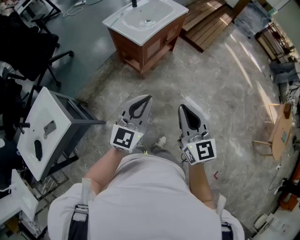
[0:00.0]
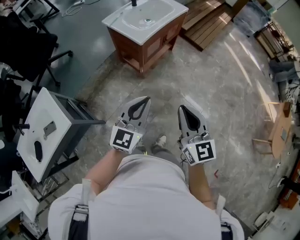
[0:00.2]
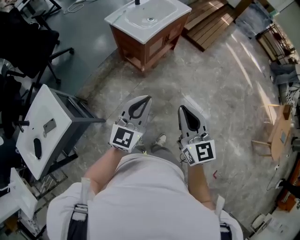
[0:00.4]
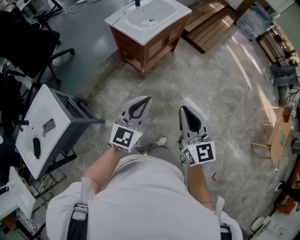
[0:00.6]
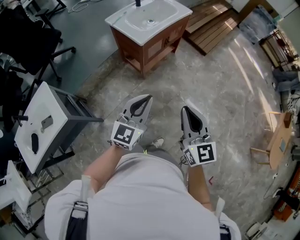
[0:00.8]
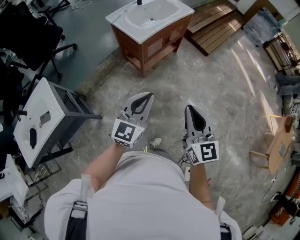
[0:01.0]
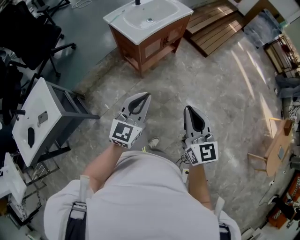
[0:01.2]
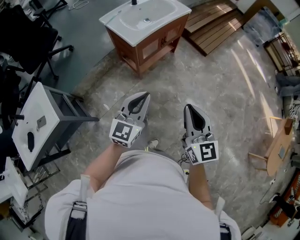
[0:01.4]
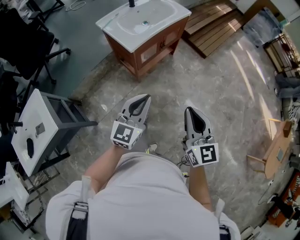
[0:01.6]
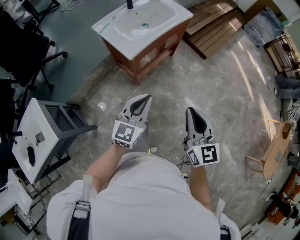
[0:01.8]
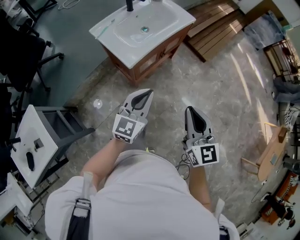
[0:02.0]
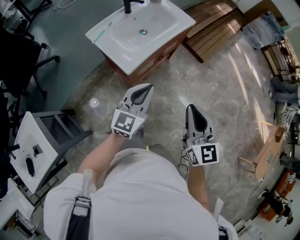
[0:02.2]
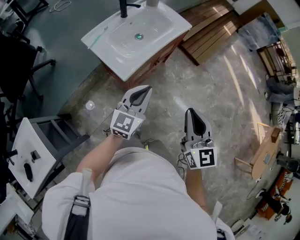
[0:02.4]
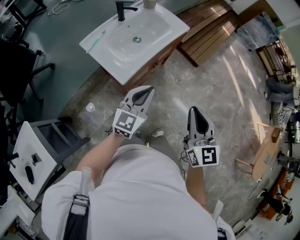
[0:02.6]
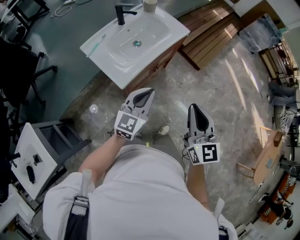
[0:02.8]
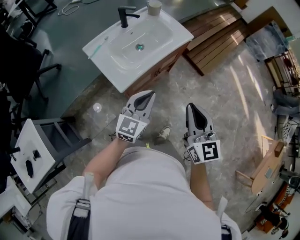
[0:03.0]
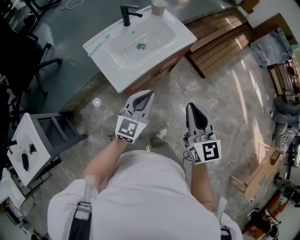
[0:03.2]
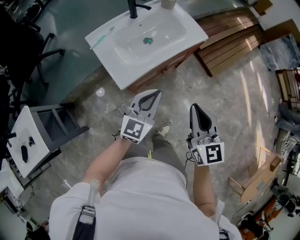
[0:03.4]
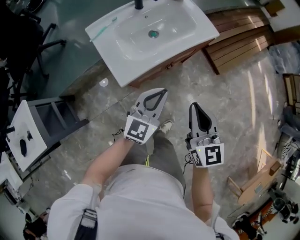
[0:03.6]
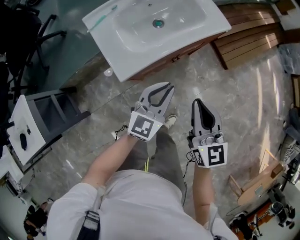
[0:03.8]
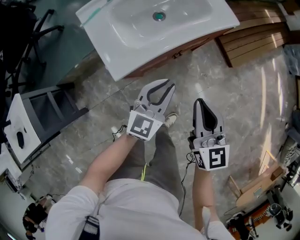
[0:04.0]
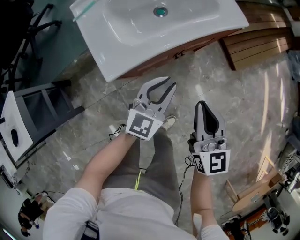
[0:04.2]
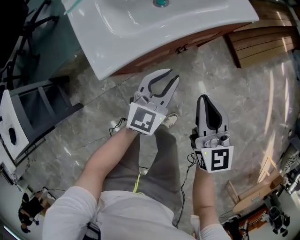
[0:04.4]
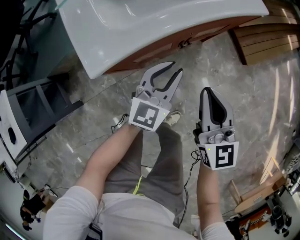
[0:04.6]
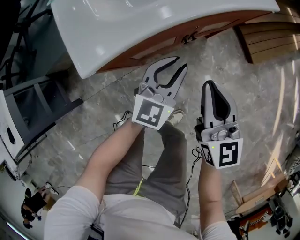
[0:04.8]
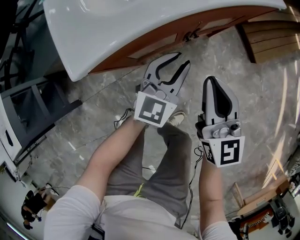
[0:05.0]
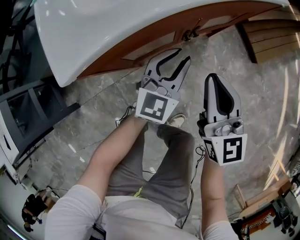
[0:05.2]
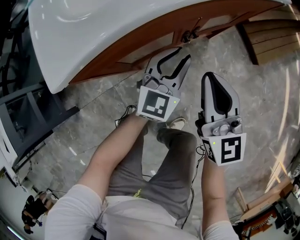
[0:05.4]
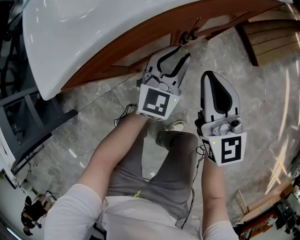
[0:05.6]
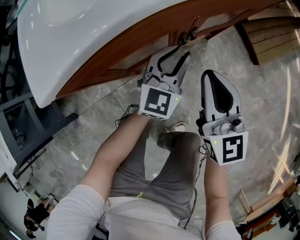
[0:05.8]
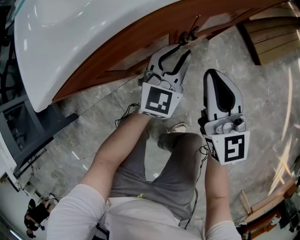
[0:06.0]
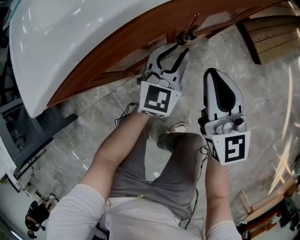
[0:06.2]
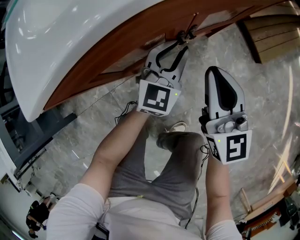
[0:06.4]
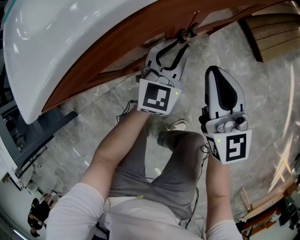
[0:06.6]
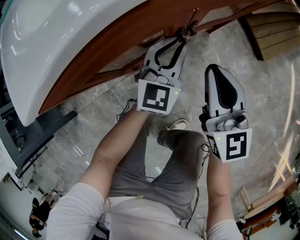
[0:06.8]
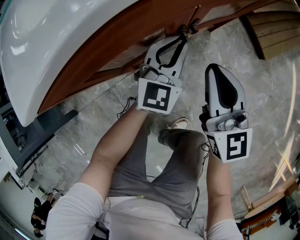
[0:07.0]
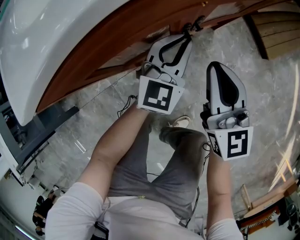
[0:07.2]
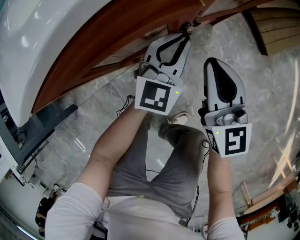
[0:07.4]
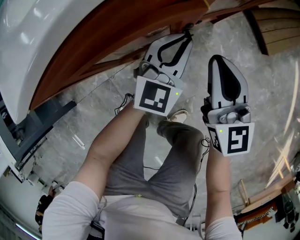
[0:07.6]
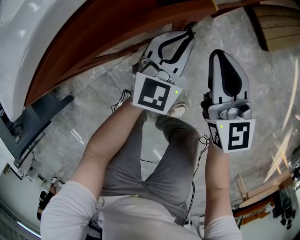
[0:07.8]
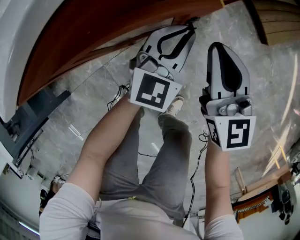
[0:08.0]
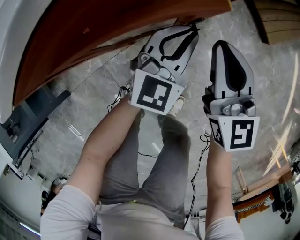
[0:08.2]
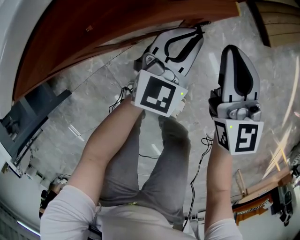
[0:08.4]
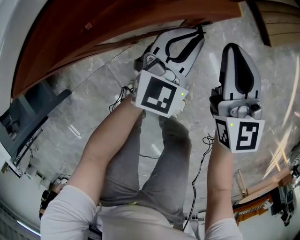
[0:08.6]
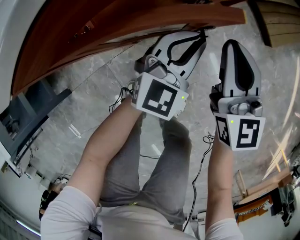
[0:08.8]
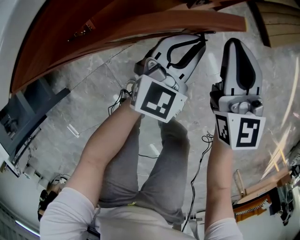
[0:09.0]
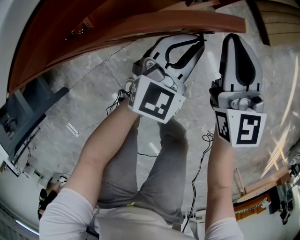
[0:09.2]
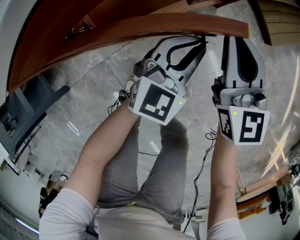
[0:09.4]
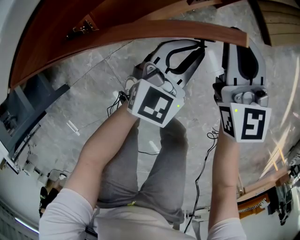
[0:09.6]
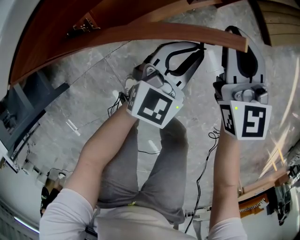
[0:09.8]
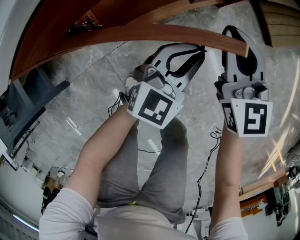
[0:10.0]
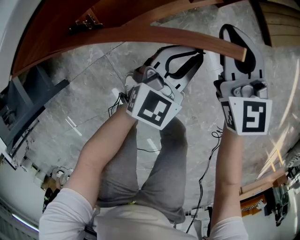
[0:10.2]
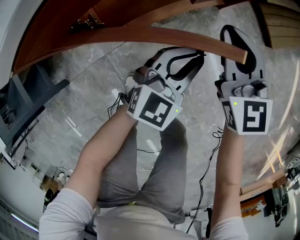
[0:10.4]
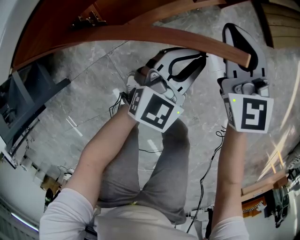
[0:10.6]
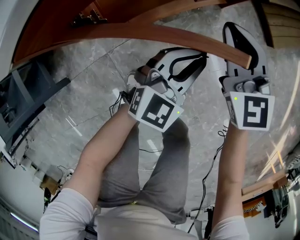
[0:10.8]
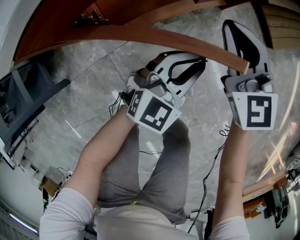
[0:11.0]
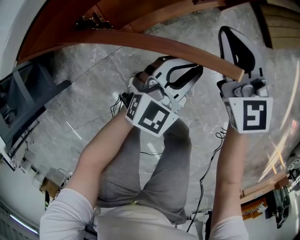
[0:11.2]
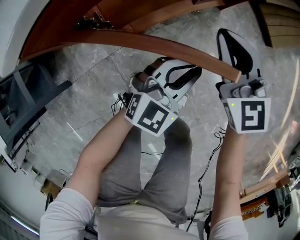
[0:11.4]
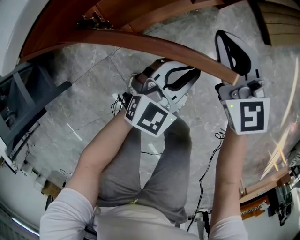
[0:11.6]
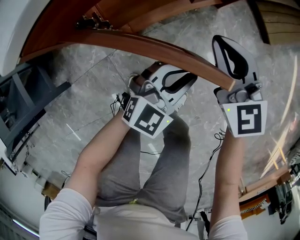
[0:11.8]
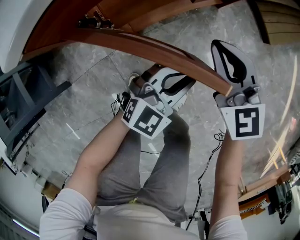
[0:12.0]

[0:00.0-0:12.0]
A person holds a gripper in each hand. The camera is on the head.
0:00.0 to 0:01.6: The left gripper heads forward, to the right and downward, covering approximately 20 cm, while the right gripper heads forward and to the right, covering roughly 20 cm.
0:01.6 to 0:03.0: Both grippers move forward, roughly 35 cm.
0:03.0 to 0:04.4: Both grippers move downward and forward, some 35 cm.
0:04.4 to 0:06.0: Both grippers move downward, approximately 25 cm.
0:06.0 to 0:07.6: The right gripper moves downward, about 5 cm.
0:07.6 to 0:09.0: The left gripper goes some 5 cm backward.
0:09.0 to 0:10.4: The left gripper moves backward, some 5 cm.
0:10.4 to 0:12.0: The two grippers go some 5 cm backward.

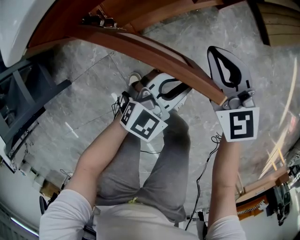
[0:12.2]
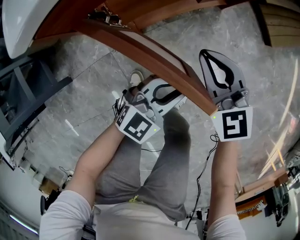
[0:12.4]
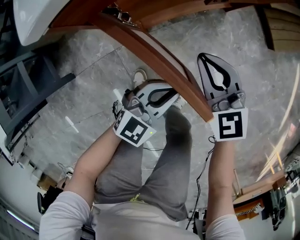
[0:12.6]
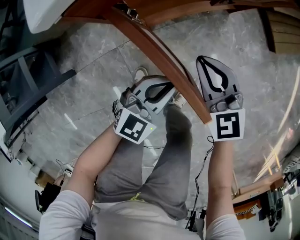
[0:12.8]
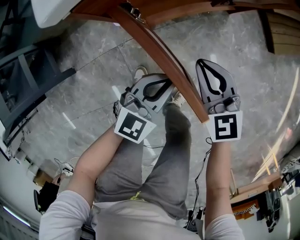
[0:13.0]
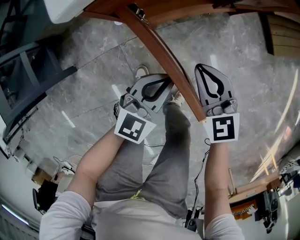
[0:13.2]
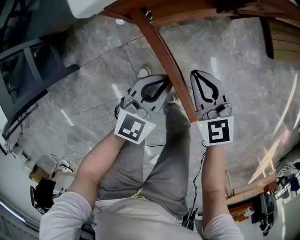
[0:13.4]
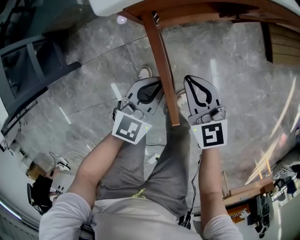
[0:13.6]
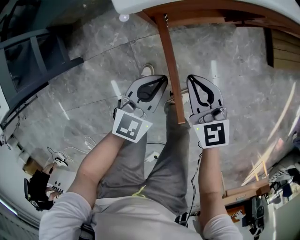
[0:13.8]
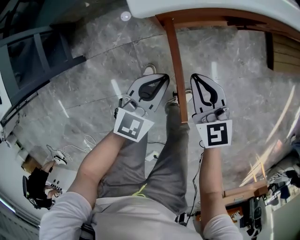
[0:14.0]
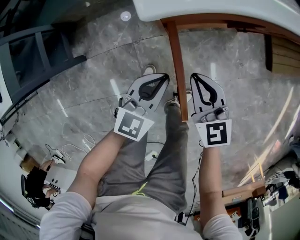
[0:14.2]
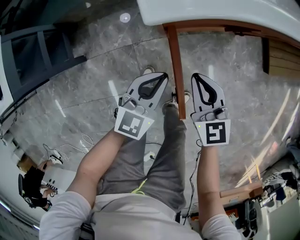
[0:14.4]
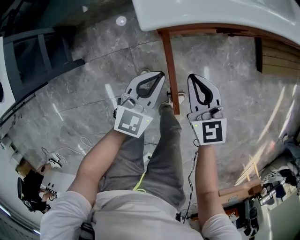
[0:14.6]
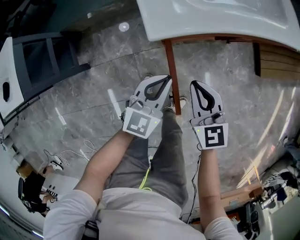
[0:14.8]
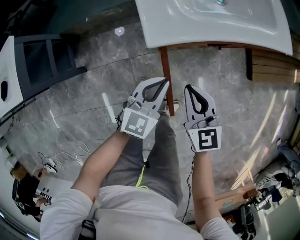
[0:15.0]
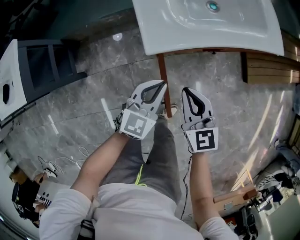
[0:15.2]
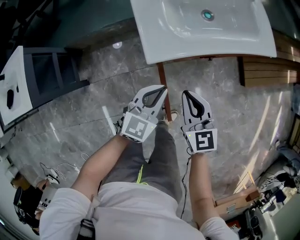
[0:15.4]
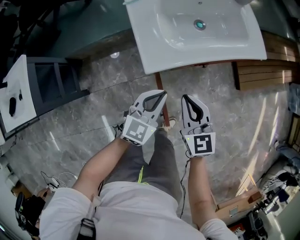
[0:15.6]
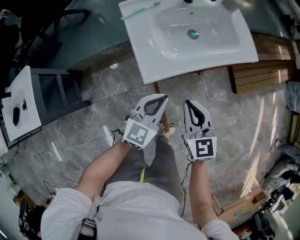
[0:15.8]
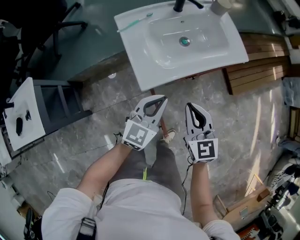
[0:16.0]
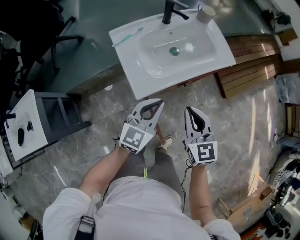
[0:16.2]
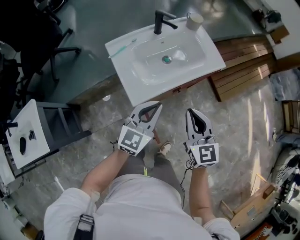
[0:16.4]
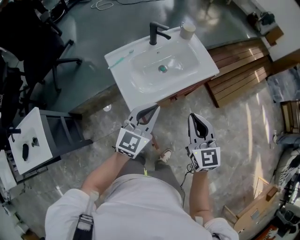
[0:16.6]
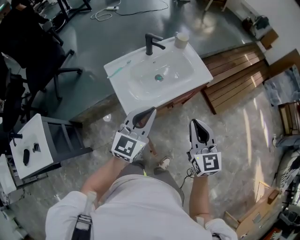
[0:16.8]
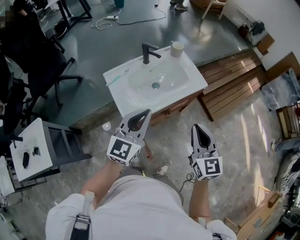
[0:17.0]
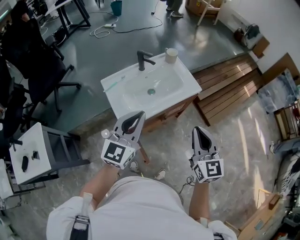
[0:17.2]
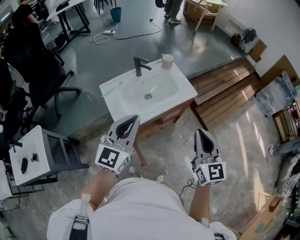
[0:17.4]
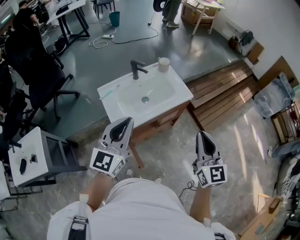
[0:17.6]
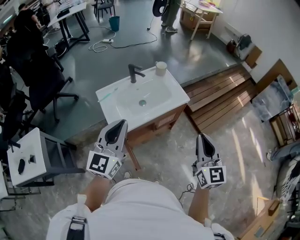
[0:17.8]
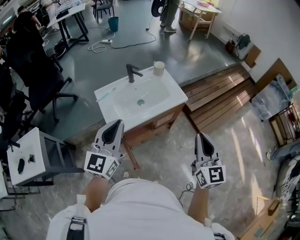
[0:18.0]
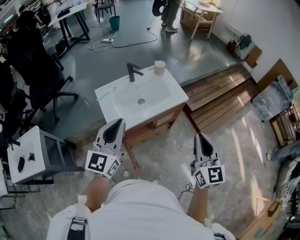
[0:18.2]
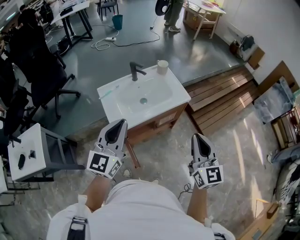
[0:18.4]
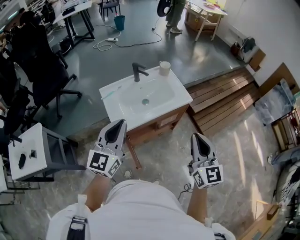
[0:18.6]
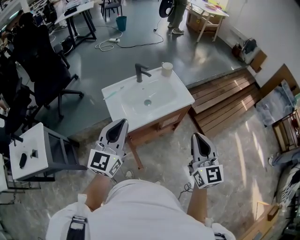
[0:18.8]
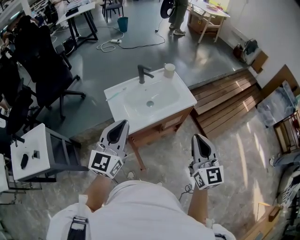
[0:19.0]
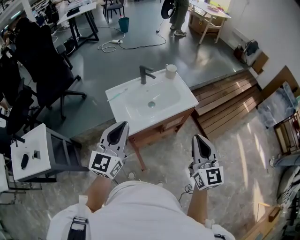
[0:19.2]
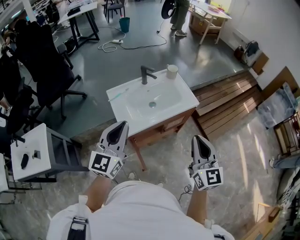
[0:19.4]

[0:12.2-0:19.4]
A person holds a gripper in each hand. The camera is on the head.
0:12.2 to 0:13.6: The right gripper heads to the left and backward, covering approximately 15 cm. The left gripper goes some 15 cm to the left and upward, and turns by some 30 degrees.
0:13.6 to 0:15.0: The grippers both shift upward by some 20 cm.
0:15.0 to 0:16.6: Both grippers move upward, some 35 cm. The right gripper turns by approximately 30 degrees.
0:16.6 to 0:18.0: The right gripper moves to the right and upward, about 25 cm, while the left gripper travels upward and backward by roughly 20 cm.
0:18.0 to 0:19.4: The two grippers go roughly 5 cm to the left.

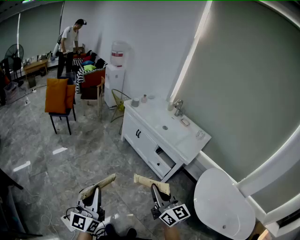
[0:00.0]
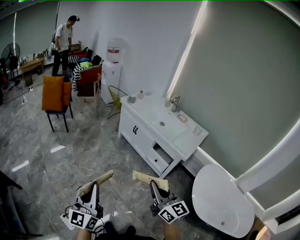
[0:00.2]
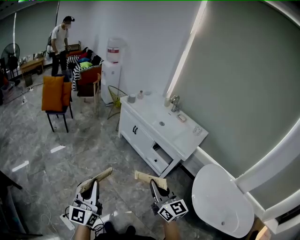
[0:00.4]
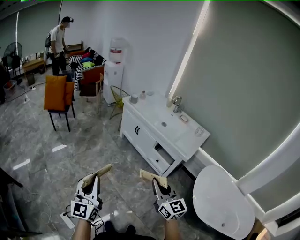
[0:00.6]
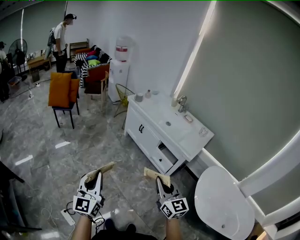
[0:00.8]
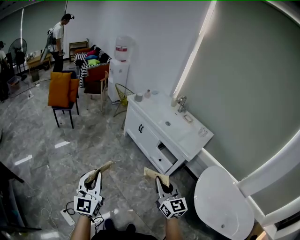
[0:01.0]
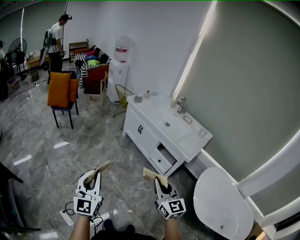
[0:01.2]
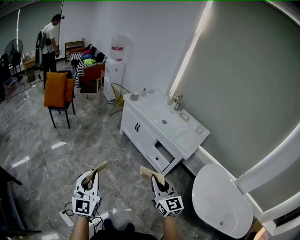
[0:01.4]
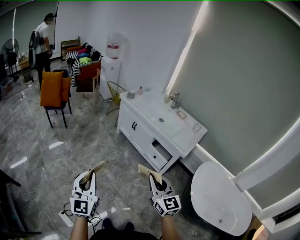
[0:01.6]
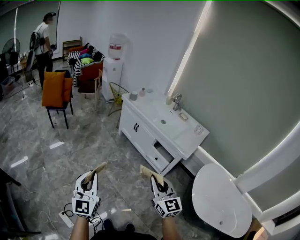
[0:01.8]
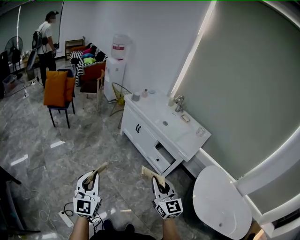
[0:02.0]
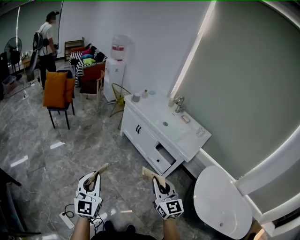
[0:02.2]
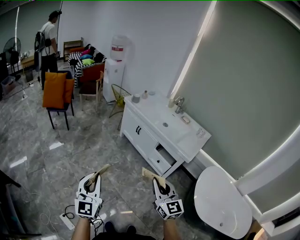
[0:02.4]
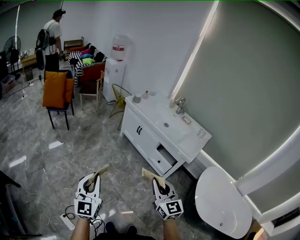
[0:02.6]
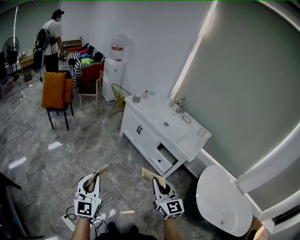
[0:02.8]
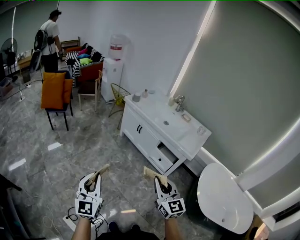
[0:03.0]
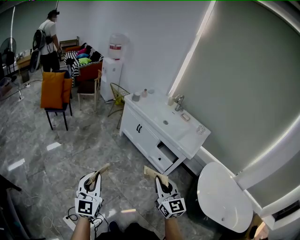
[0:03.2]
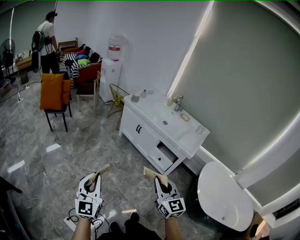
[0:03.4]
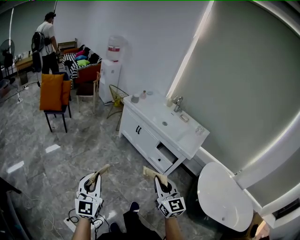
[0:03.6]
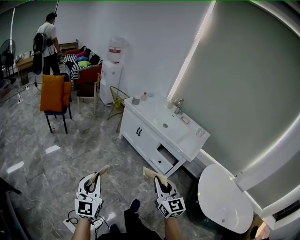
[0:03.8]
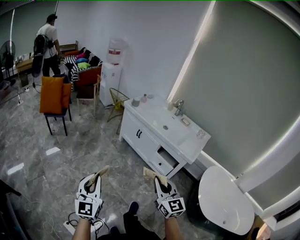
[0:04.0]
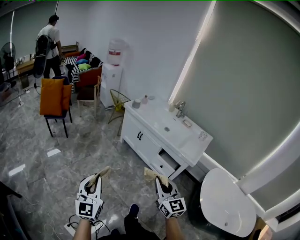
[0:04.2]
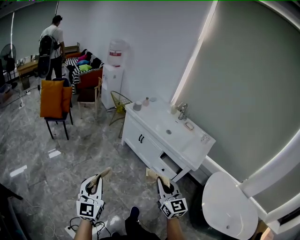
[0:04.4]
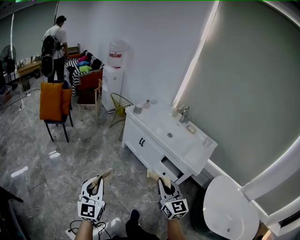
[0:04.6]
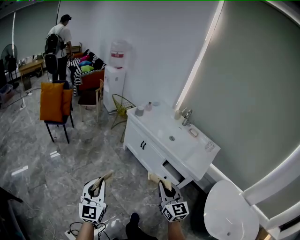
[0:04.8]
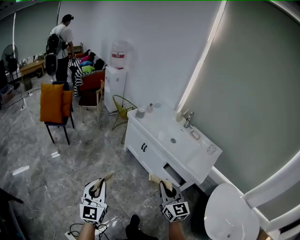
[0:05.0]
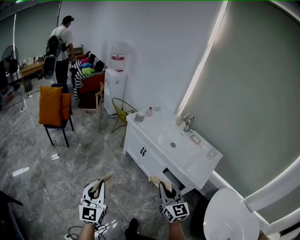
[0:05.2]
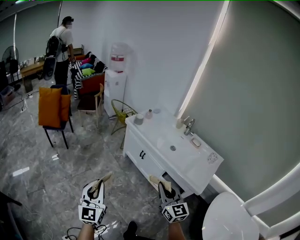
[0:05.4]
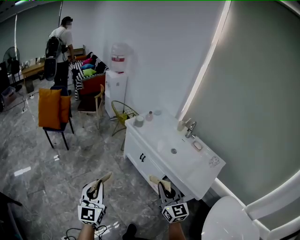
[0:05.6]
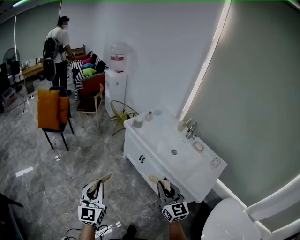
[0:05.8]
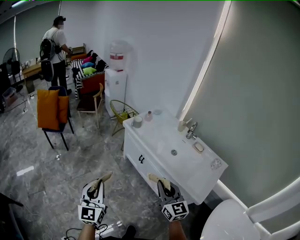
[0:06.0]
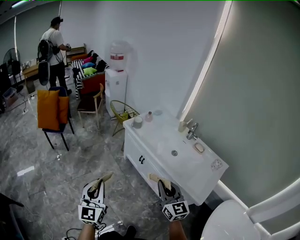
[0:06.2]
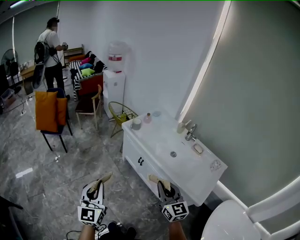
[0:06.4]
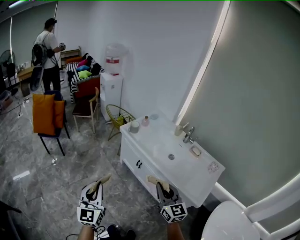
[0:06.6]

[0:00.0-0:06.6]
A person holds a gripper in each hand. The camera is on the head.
0:00.0 to 0:01.6: The left gripper travels forward by about 5 cm, and changes its angle by some 20 degrees. The right gripper shifts by roughly 5 cm.
0:01.6 to 0:03.2: Both grippers travel together to the left, about 10 cm.
0:03.2 to 0:05.0: The two grippers go some 20 cm forward.
0:05.0 to 0:06.6: The grippers both shift forward and to the right by approximately 20 cm.
